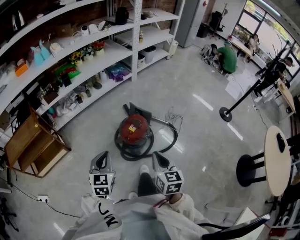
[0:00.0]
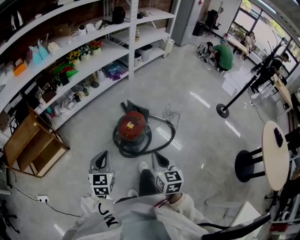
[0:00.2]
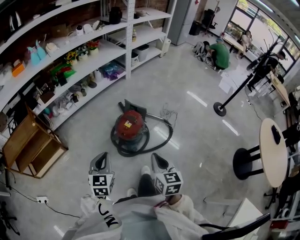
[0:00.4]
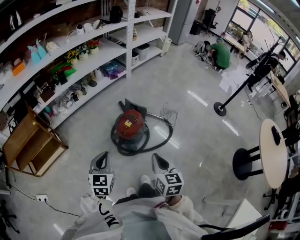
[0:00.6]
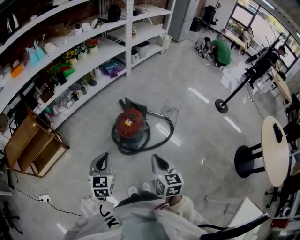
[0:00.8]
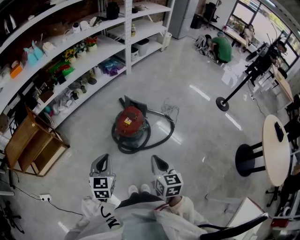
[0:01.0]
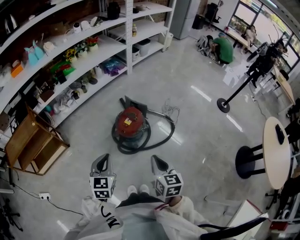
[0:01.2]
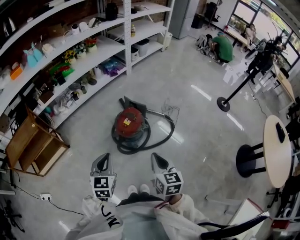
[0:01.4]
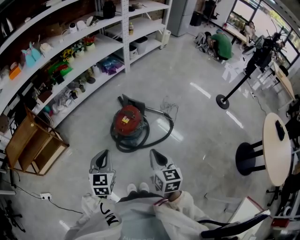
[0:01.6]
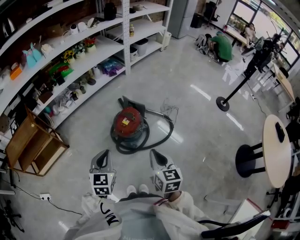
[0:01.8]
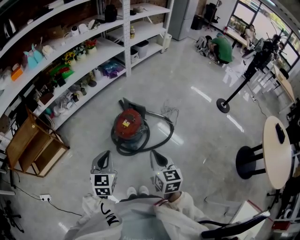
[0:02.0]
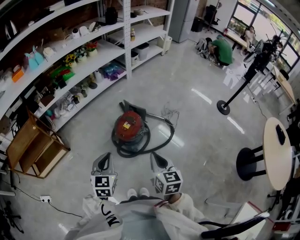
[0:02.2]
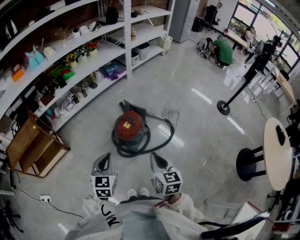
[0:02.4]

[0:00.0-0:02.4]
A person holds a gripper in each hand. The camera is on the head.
0:00.0 to 0:01.2: The left gripper moves about 5 cm, while the right gripper moves backward, about 5 cm.
0:01.2 to 0:02.4: There are only small adjustments of the grippers.

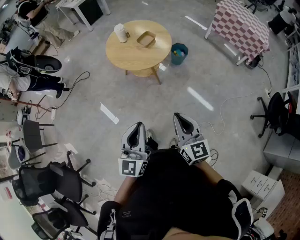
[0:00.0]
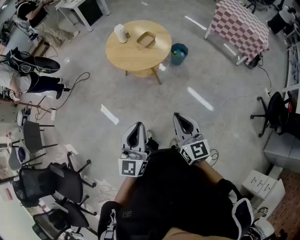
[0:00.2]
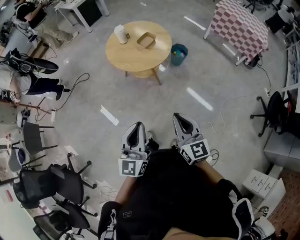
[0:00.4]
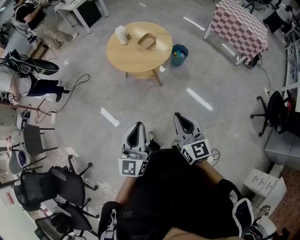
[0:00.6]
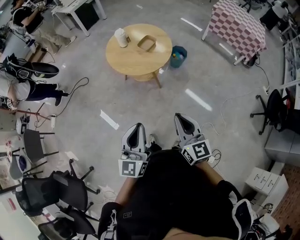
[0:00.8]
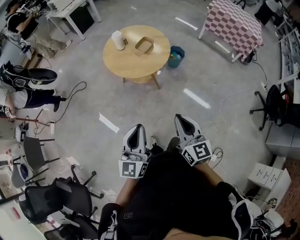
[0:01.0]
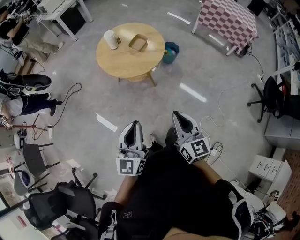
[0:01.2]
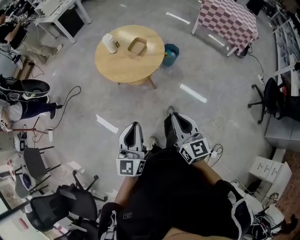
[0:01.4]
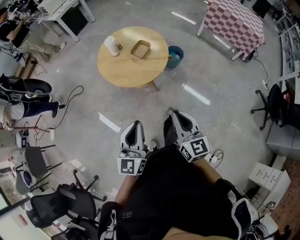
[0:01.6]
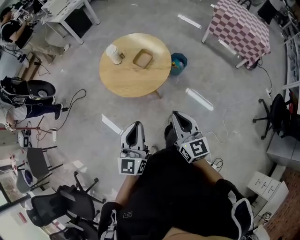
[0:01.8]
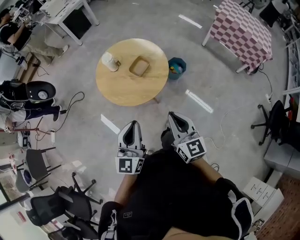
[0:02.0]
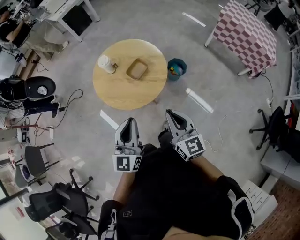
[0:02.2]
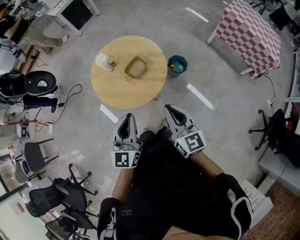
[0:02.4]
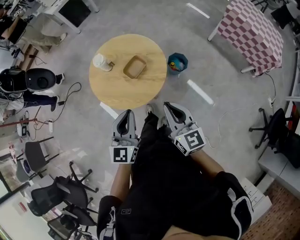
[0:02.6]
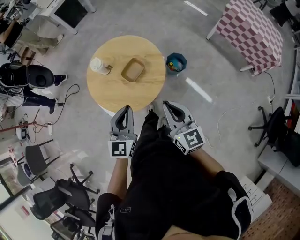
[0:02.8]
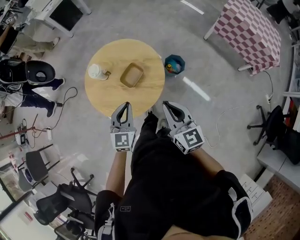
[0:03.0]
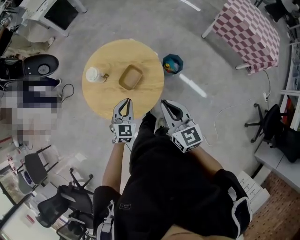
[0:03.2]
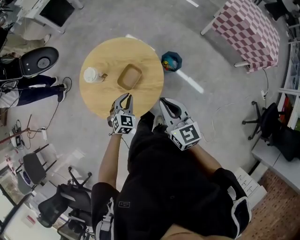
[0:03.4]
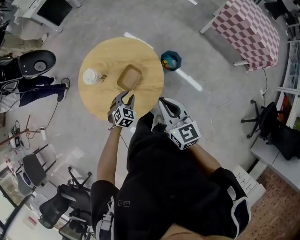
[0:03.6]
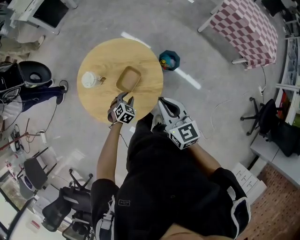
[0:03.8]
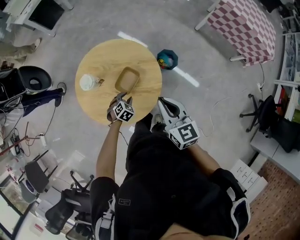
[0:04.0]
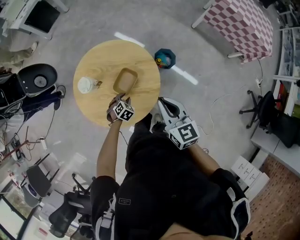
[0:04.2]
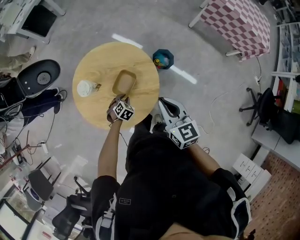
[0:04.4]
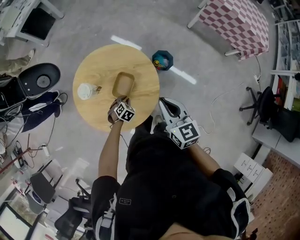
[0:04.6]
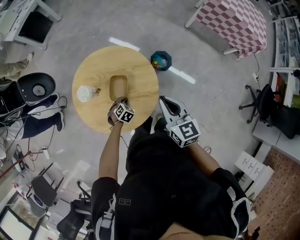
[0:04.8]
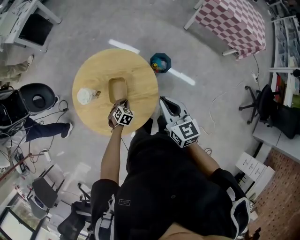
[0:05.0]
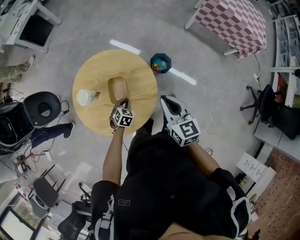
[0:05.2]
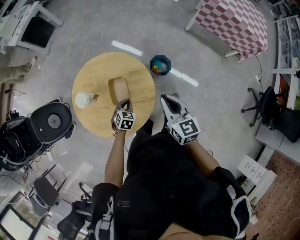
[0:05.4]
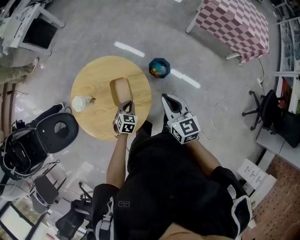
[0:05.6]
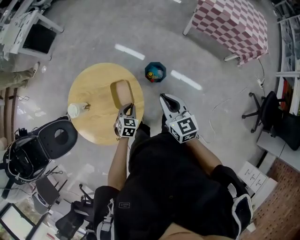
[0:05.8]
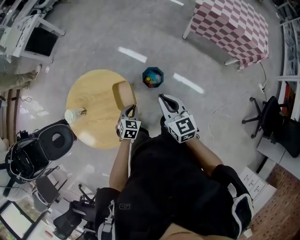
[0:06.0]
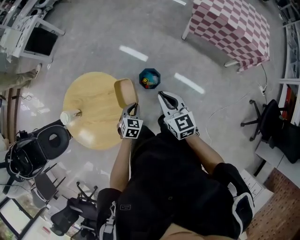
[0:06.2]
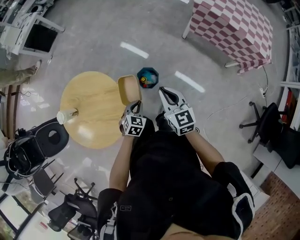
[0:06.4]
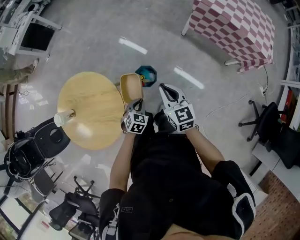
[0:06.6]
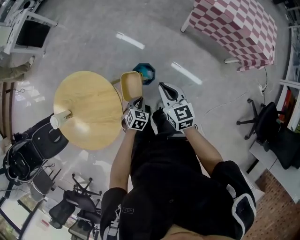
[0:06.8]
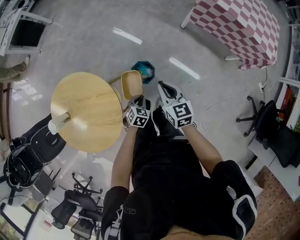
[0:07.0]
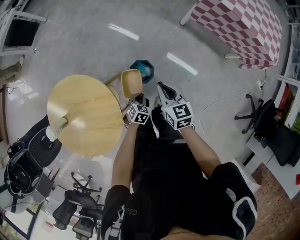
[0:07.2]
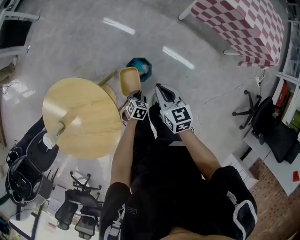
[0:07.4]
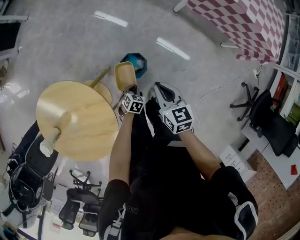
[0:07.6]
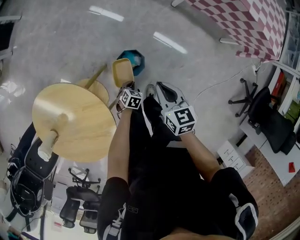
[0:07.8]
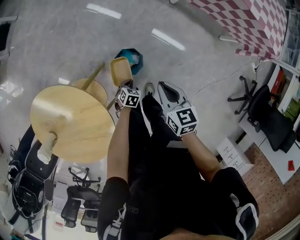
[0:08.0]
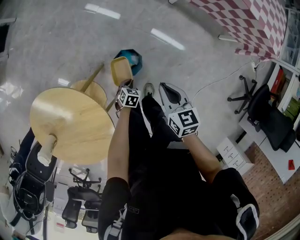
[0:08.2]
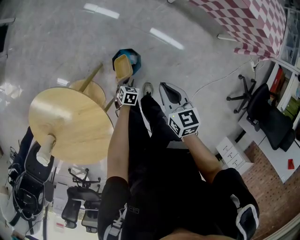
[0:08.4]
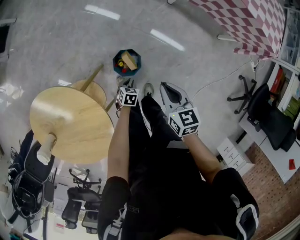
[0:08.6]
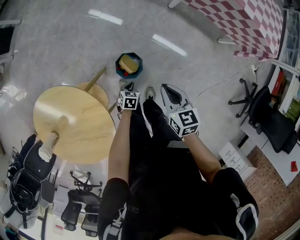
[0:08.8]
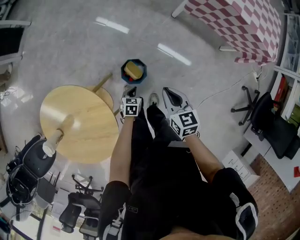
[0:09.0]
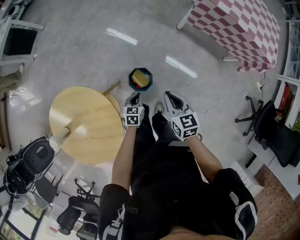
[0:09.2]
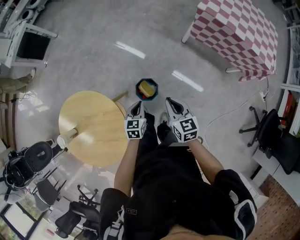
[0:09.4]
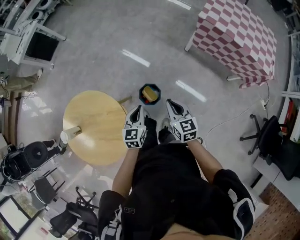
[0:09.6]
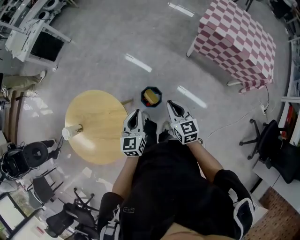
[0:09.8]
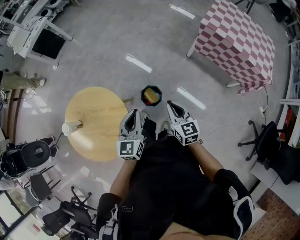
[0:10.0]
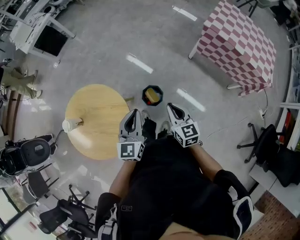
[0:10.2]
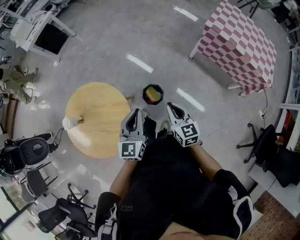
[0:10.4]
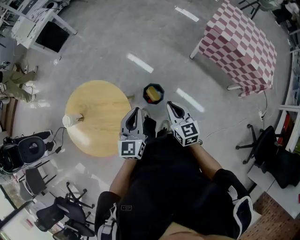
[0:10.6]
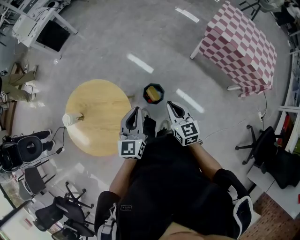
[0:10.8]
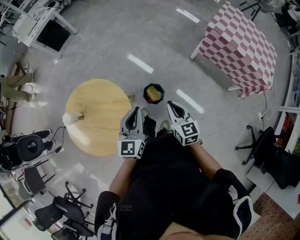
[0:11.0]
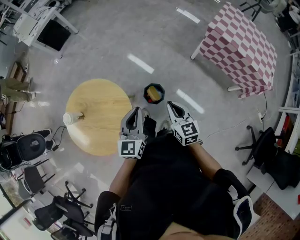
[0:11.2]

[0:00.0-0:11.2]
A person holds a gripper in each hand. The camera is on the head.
0:00.0 to 0:01.6: The grippers both shift forward by roughly 15 cm.
0:01.6 to 0:03.2: The pair of grippers is taken forward, approximately 40 cm. The left gripper is displaced downward by some 20 cm, and angles its fingers downward, by roughly 30 degrees.
0:03.2 to 0:04.8: The right gripper shifts approximately 10 cm forward. Meanwhile the left gripper moves downward, roughly 25 cm, tips its fingers downward by roughly 40 degrees, and opens, then closes once more.
0:04.8 to 0:06.4: The left gripper is displaced to the right by about 35 cm; the right gripper shifts some 35 cm to the right and forward.
0:06.4 to 0:08.0: The grippers both shift downward and forward by approximately 30 cm. The left gripper rotates about 30 degrees; the right gripper rotates approximately 30 degrees.
0:08.0 to 0:09.6: The right gripper goes some 15 cm upward. The left gripper is displaced upward by about 40 cm, and angles its fingers upward, by roughly 40 degrees.
0:09.6 to 0:11.2: The left gripper shifts some 20 cm upward, backward and to the left, and changes its angle by some 20 degrees; the right gripper travels to the left, upward and backward by roughly 10 cm.

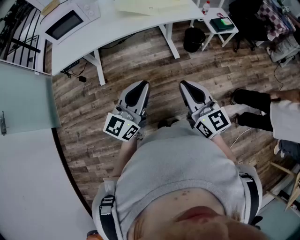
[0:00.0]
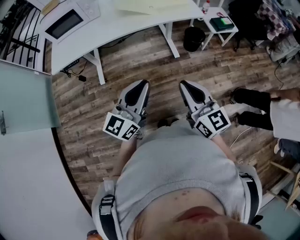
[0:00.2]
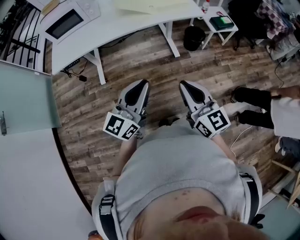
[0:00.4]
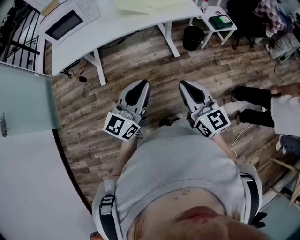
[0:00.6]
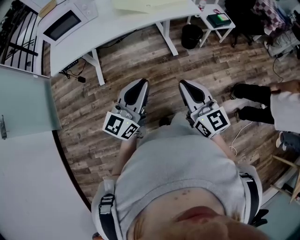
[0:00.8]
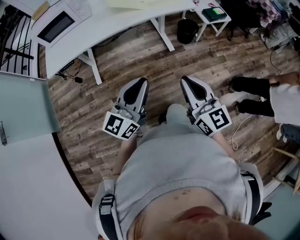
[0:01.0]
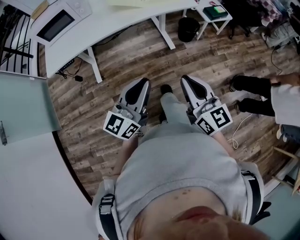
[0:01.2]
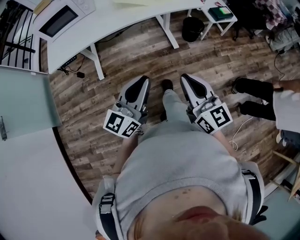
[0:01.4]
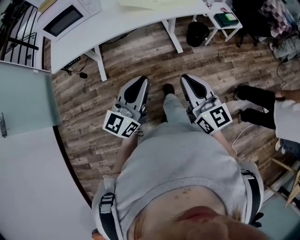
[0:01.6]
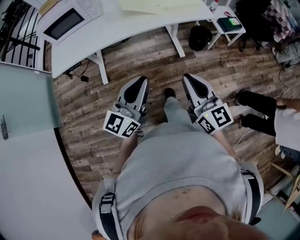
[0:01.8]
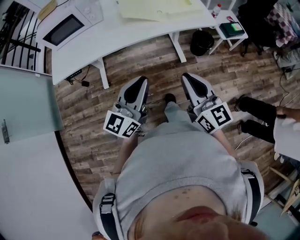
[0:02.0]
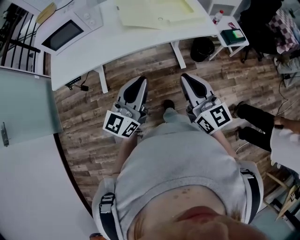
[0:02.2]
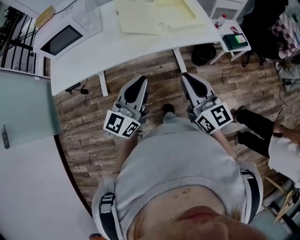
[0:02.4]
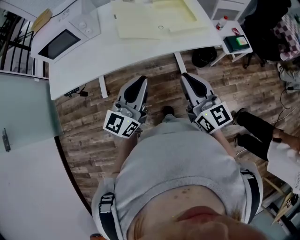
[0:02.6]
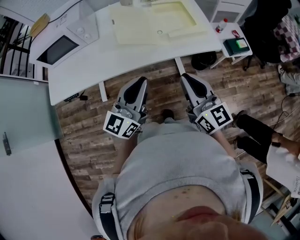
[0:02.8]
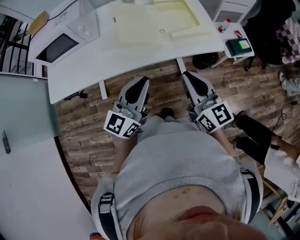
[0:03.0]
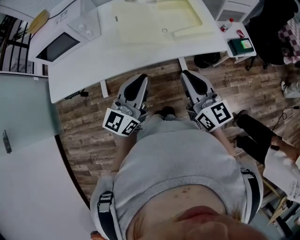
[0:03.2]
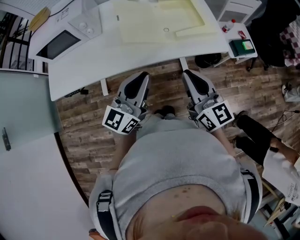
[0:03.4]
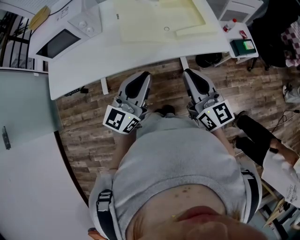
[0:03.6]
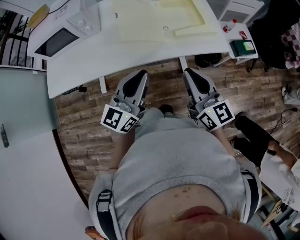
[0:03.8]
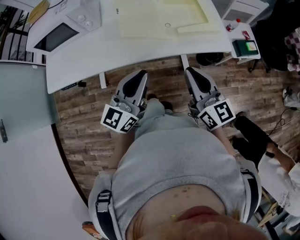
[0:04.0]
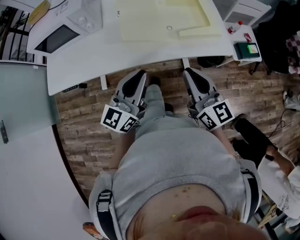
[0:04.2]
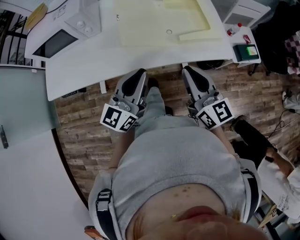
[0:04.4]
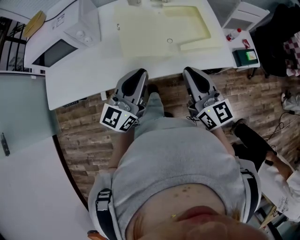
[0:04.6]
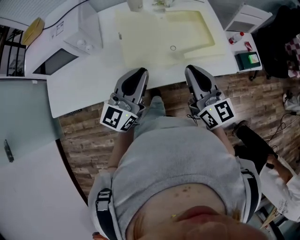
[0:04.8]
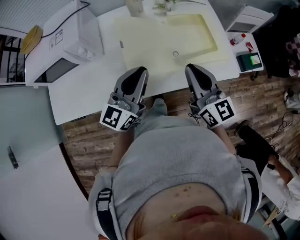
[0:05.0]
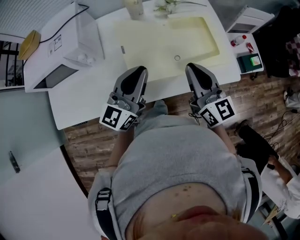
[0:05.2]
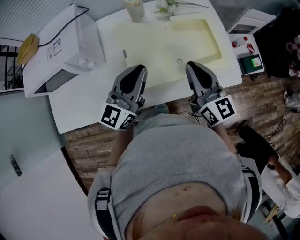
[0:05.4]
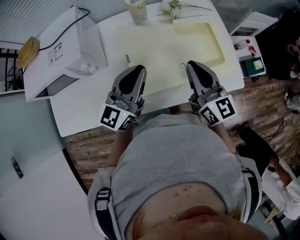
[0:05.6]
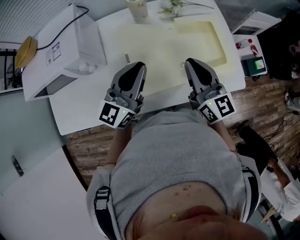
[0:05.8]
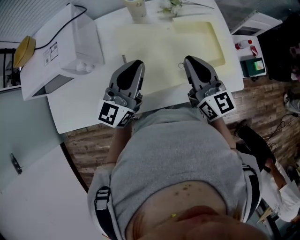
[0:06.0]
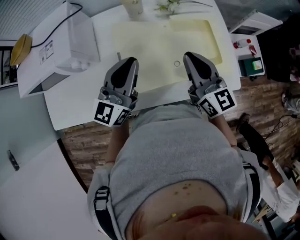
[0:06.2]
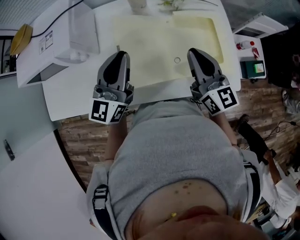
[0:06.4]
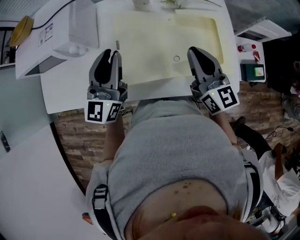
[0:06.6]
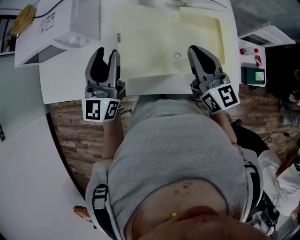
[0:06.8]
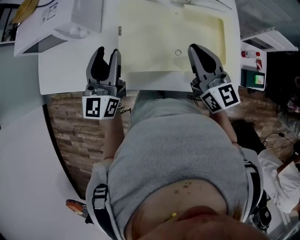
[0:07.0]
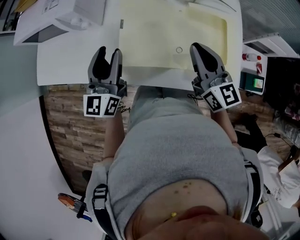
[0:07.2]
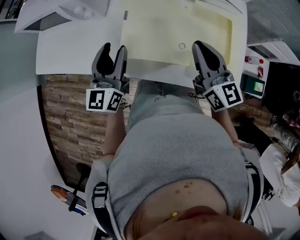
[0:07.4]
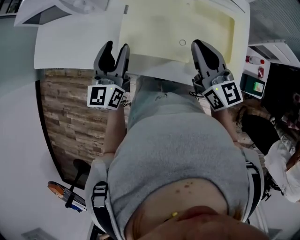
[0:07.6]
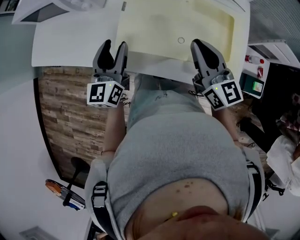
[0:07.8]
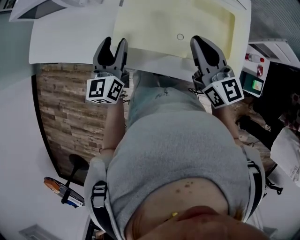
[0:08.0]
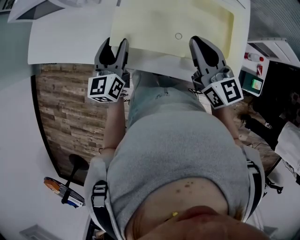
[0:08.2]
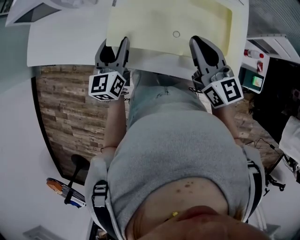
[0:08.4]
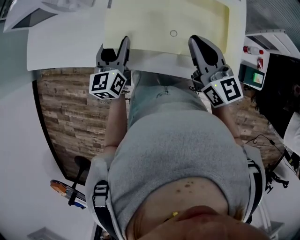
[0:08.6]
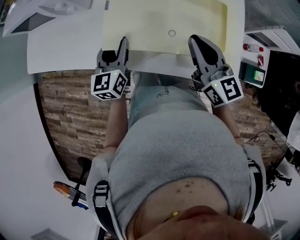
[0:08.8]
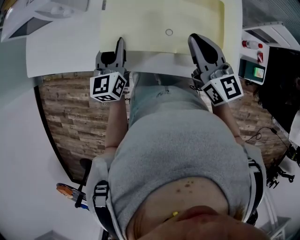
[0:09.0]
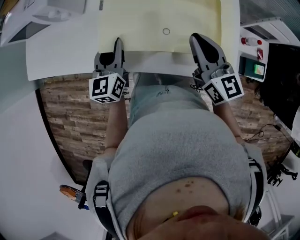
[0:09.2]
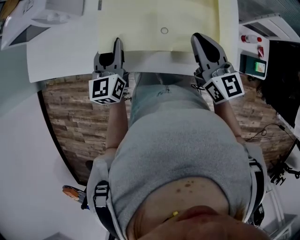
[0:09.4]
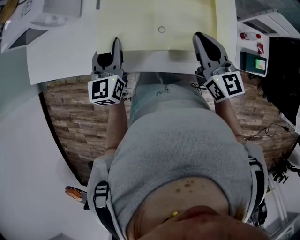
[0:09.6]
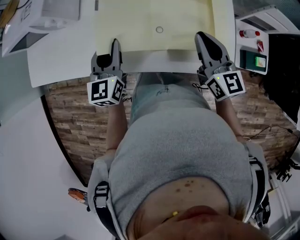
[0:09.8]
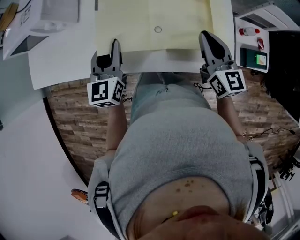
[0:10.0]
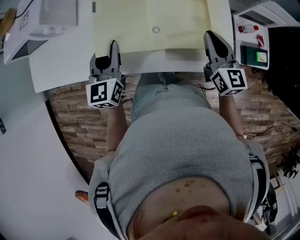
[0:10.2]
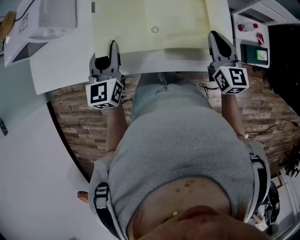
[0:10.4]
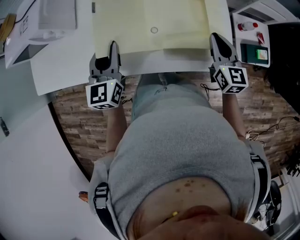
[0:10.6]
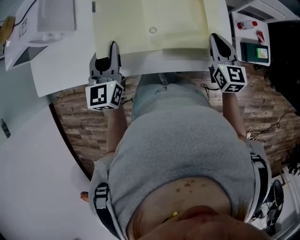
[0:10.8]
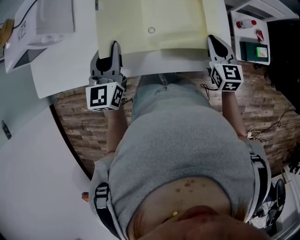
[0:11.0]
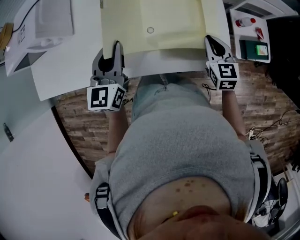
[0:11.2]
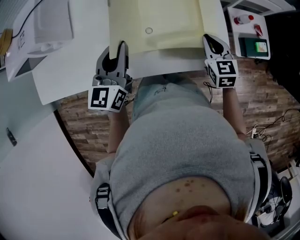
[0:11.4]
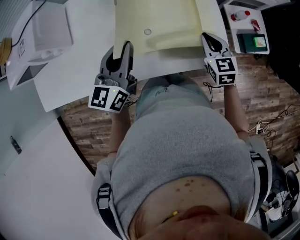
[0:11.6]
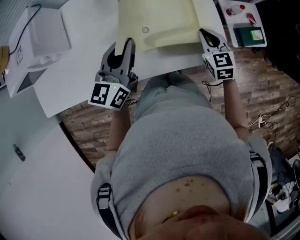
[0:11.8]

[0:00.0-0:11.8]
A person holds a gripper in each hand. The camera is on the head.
0:00.0 to 0:01.4: There are only small adjustments of the grippers.
0:01.4 to 0:03.0: The grippers both shift forward by about 30 cm.
0:03.0 to 0:04.4: Both grippers move forward, roughly 5 cm.
0:04.4 to 0:06.0: The two grippers go roughly 25 cm forward.
0:06.0 to 0:07.4: The left gripper ends up approximately 10 cm from where it was, turns by some 40 degrees, and opens up.
0:07.4 to 0:08.8: The left gripper shifts some 10 cm downward.
0:08.8 to 0:10.4: The left gripper travels to the right and upward by approximately 5 cm; the right gripper is displaced to the right by about 15 cm, and rotates some 20 degrees.
0:10.4 to 0:11.8: The right gripper moves downward, roughly 5 cm, and changes its angle by some 20 degrees. The left gripper goes about 10 cm to the right, and swivels approximately 30 degrees.
